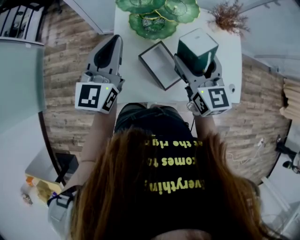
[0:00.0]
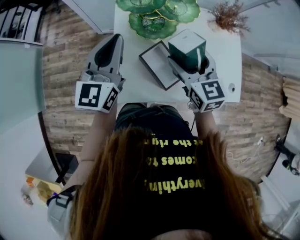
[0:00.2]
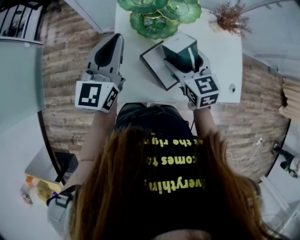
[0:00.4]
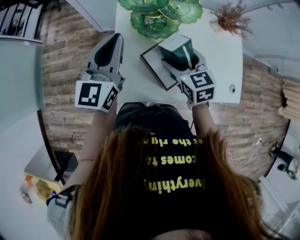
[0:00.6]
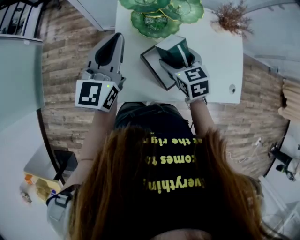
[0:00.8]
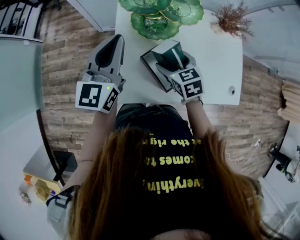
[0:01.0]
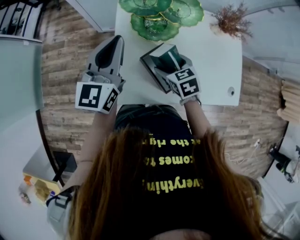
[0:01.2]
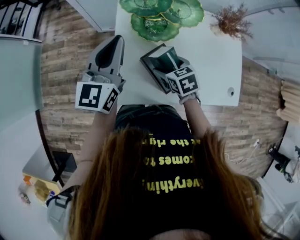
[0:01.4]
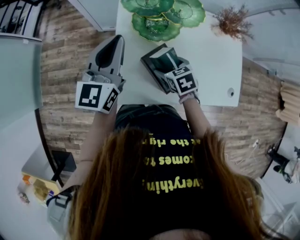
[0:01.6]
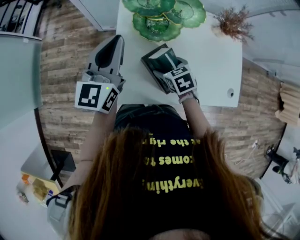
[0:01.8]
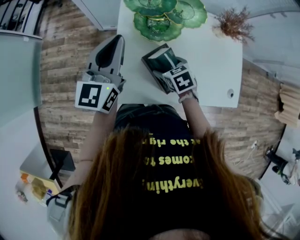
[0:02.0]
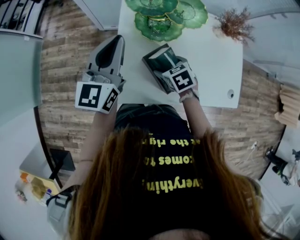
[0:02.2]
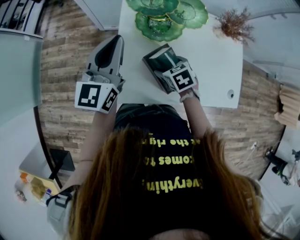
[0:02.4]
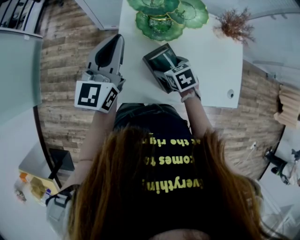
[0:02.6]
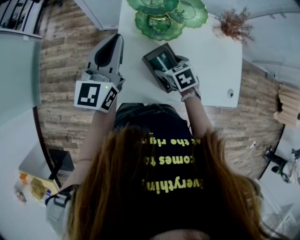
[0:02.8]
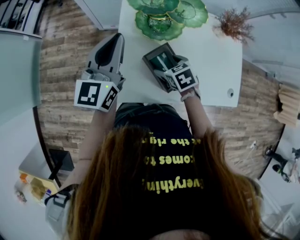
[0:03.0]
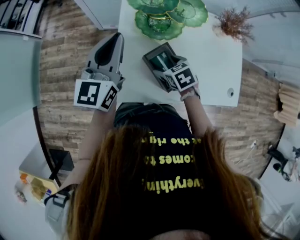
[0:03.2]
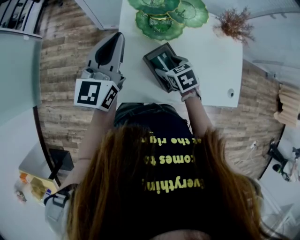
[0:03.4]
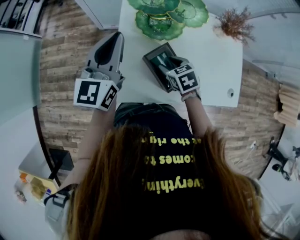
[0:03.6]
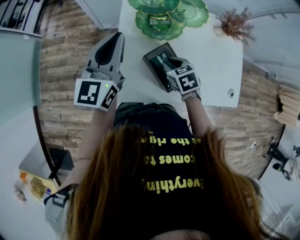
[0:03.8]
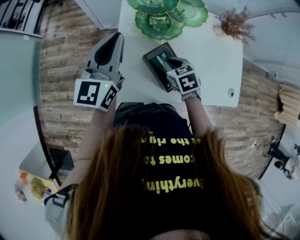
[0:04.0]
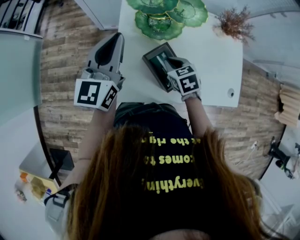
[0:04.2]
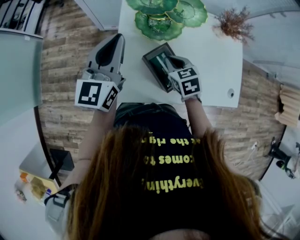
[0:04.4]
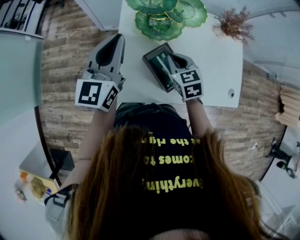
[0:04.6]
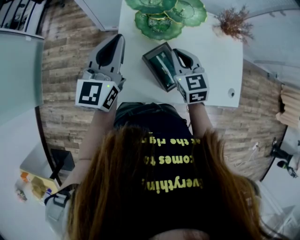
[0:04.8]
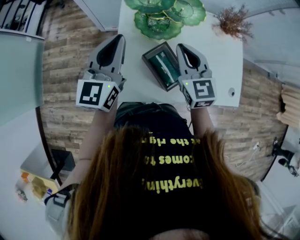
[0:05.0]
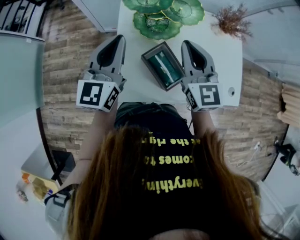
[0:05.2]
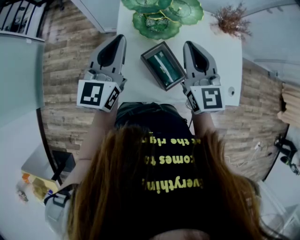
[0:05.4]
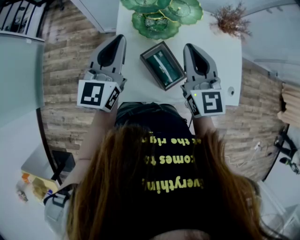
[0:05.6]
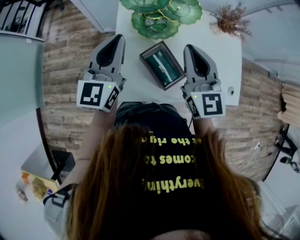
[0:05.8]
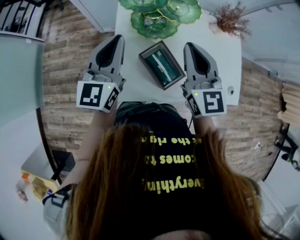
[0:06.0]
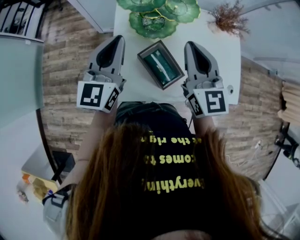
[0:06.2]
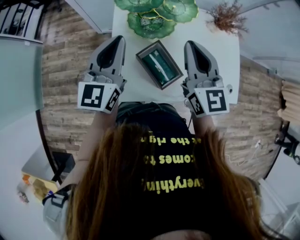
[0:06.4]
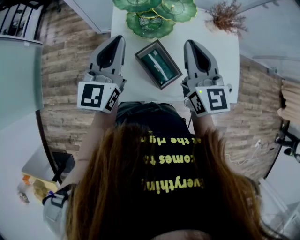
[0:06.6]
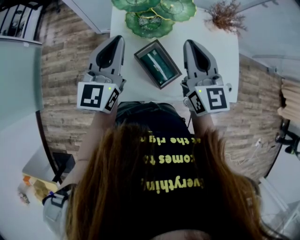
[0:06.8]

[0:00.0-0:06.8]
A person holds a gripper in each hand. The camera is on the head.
0:00.0 to 0:01.4: The right gripper shifts some 20 cm downward, and points its fingers approximately 40 degrees further downward.
0:01.4 to 0:02.8: The grippers move only a little.
0:02.8 to 0:04.0: The right gripper closes.
0:04.0 to 0:05.4: The right gripper heads upward, covering about 20 cm, and angles its fingers upward, by roughly 50 degrees.
0:05.4 to 0:06.8: The grippers move only a little.

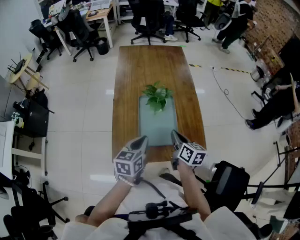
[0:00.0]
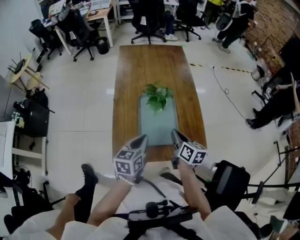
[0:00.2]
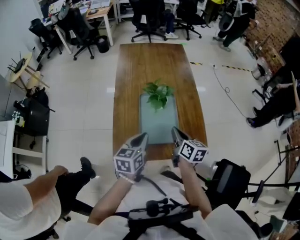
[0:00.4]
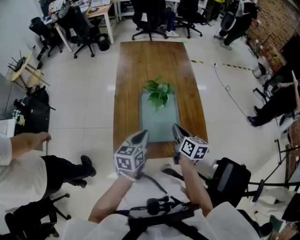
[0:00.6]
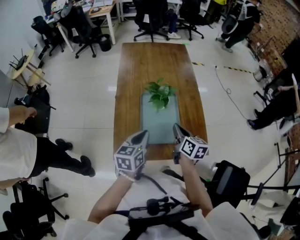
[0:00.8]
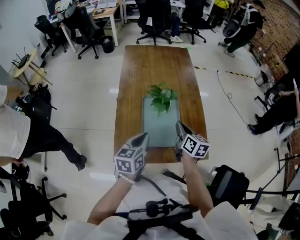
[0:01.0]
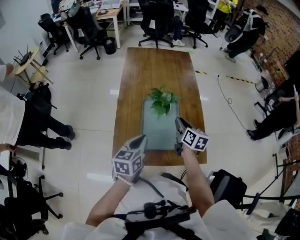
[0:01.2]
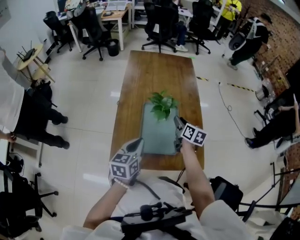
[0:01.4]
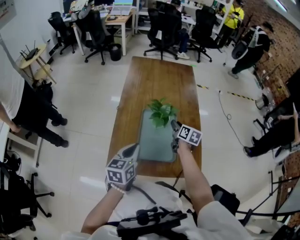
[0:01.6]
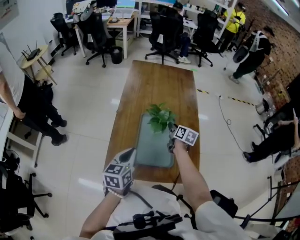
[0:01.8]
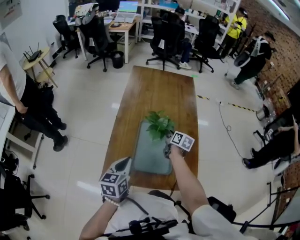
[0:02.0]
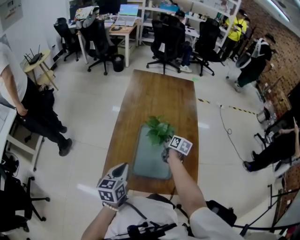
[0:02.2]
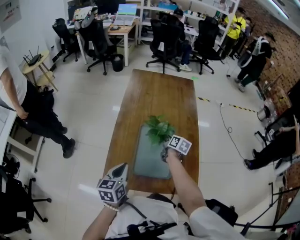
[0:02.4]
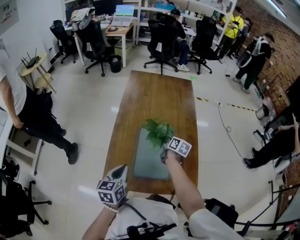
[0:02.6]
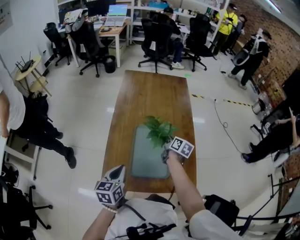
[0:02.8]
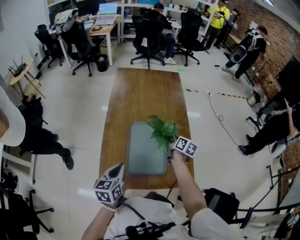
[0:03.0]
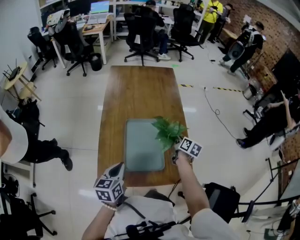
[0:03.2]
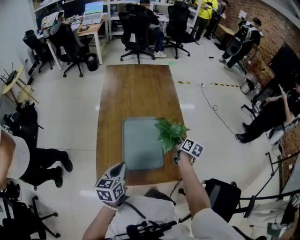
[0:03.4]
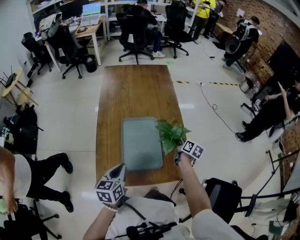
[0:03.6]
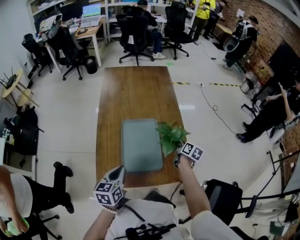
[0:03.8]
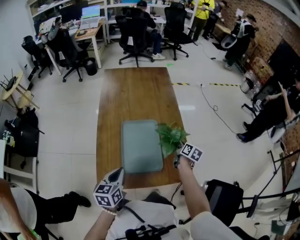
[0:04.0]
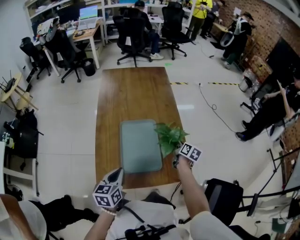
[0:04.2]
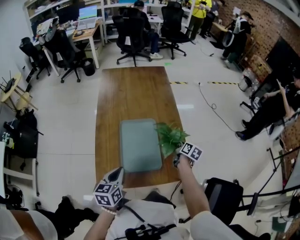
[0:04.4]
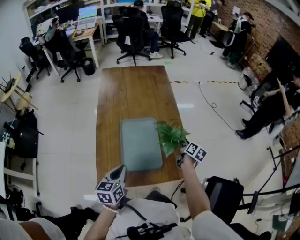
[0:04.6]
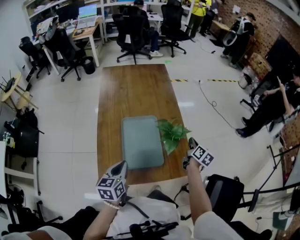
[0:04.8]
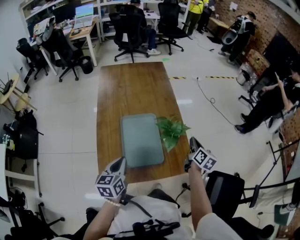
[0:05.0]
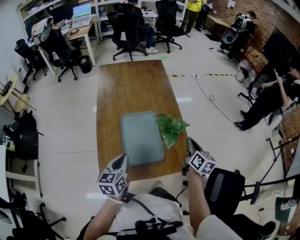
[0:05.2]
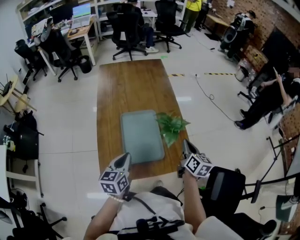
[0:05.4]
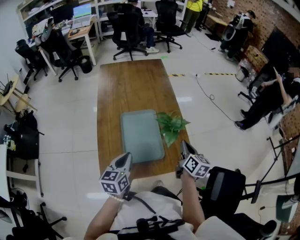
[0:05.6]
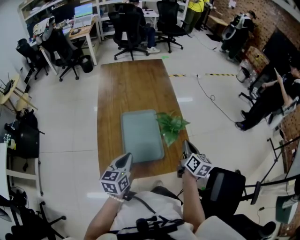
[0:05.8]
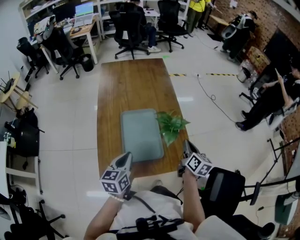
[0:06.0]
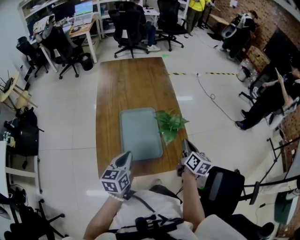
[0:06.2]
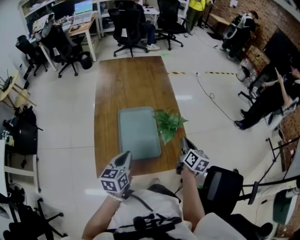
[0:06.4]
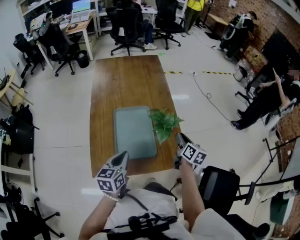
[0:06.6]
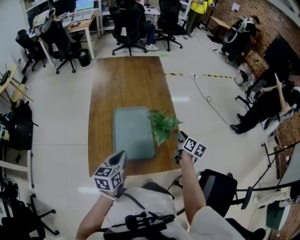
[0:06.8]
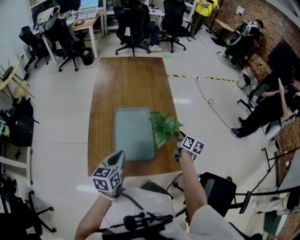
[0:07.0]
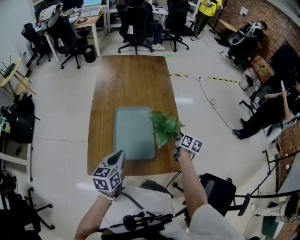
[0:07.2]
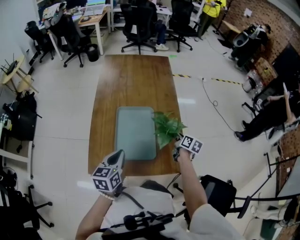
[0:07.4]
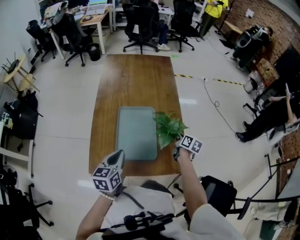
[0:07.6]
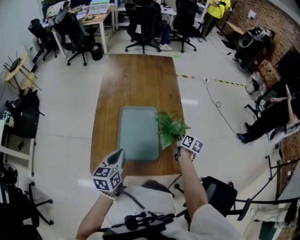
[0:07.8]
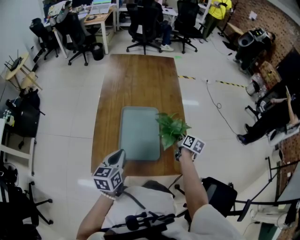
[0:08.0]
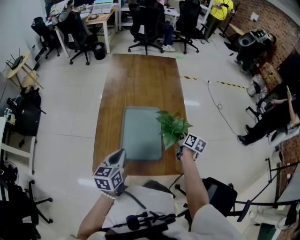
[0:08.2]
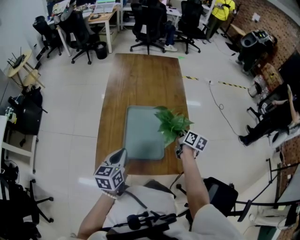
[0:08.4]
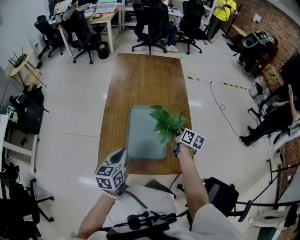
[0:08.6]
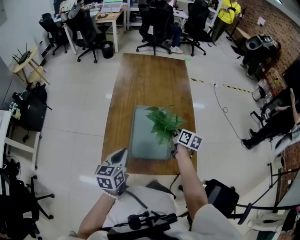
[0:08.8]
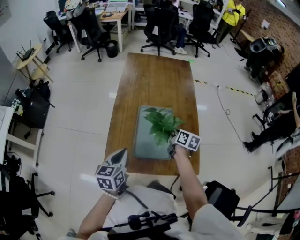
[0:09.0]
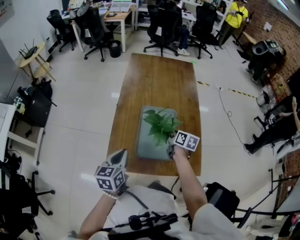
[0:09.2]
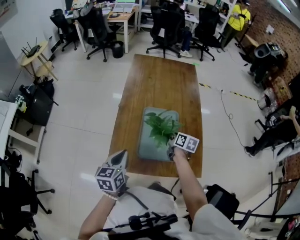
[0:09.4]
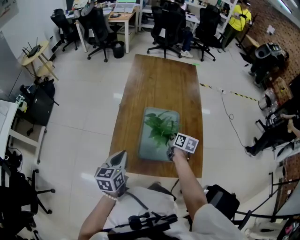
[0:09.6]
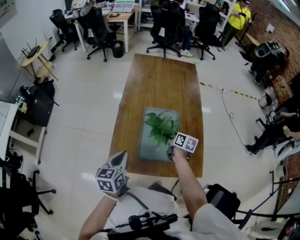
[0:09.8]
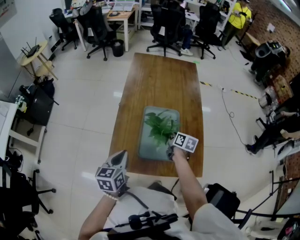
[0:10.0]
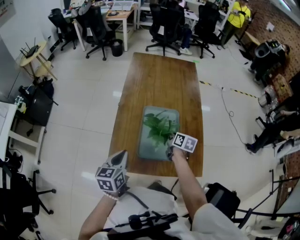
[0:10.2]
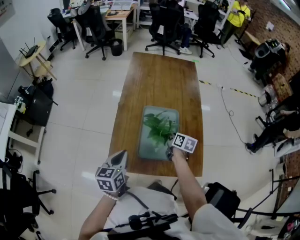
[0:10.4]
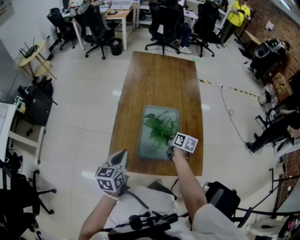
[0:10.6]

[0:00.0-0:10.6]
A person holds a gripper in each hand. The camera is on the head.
0:00.0 to 0:01.6: The right gripper moves forward, approximately 15 cm, and opens up.
0:01.6 to 0:03.0: The right gripper closes up.
0:03.0 to 0:04.6: The right gripper shifts some 15 cm to the right, and opens up.
0:04.6 to 0:06.0: The right gripper shifts about 15 cm upward and backward, and closes.
0:06.0 to 0:07.6: The right gripper is displaced downward and forward by roughly 15 cm, and opens its fingers.
0:07.6 to 0:09.0: The right gripper is displaced to the left by about 15 cm. The left gripper moves to the left, roughly 10 cm.
0:09.0 to 0:10.6: The right gripper heads downward, covering about 5 cm.

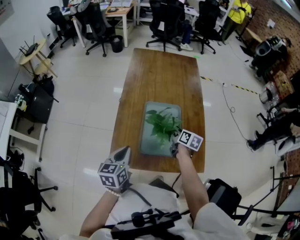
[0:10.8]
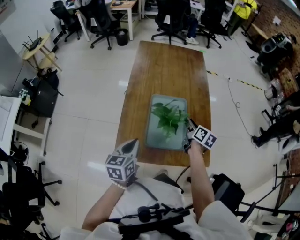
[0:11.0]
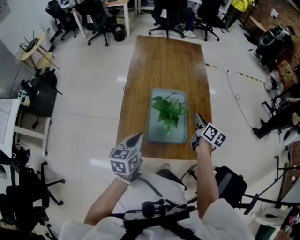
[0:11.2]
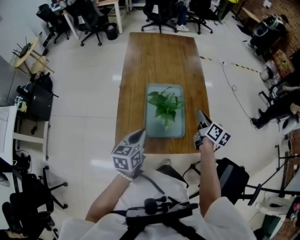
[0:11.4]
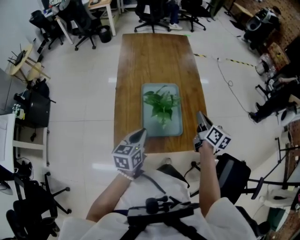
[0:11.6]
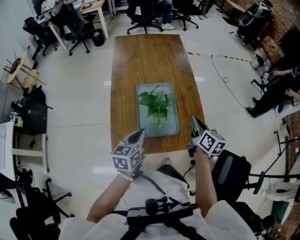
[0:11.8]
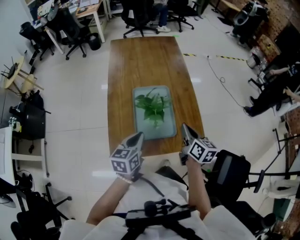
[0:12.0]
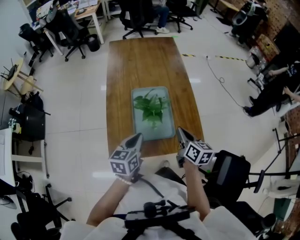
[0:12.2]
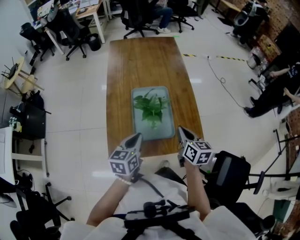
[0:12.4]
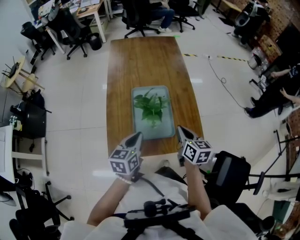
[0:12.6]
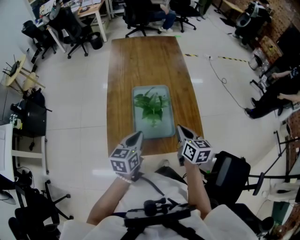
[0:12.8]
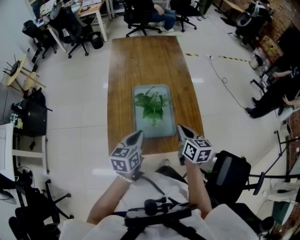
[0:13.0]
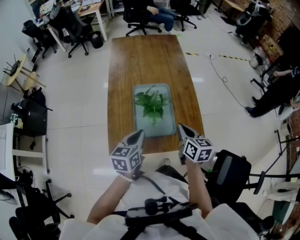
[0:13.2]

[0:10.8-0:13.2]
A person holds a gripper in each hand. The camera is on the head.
0:10.8 to 0:12.0: The right gripper goes approximately 20 cm backward and upward, and closes. The left gripper shifts about 5 cm to the right.
0:12.0 to 0:13.2: The grippers stay close to where they were, moving slightly.

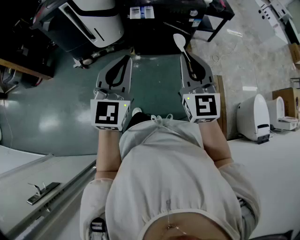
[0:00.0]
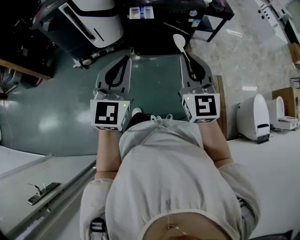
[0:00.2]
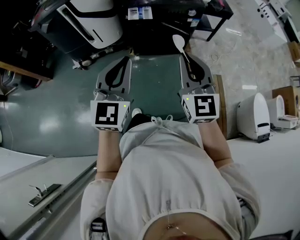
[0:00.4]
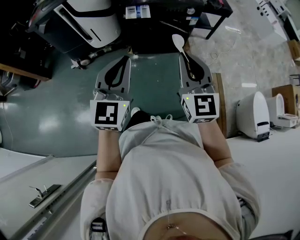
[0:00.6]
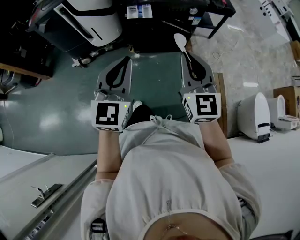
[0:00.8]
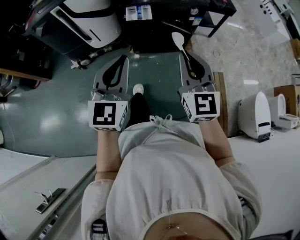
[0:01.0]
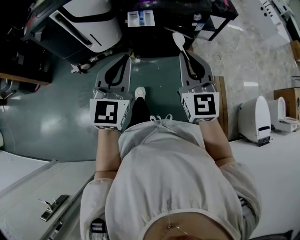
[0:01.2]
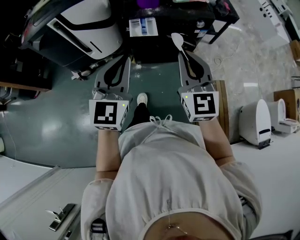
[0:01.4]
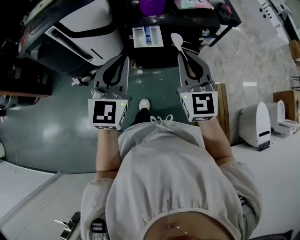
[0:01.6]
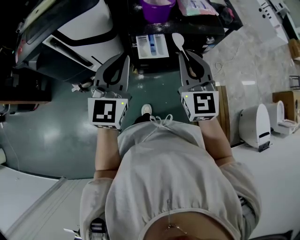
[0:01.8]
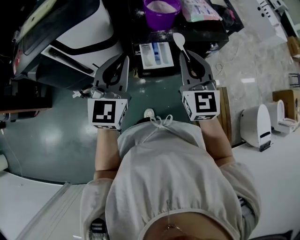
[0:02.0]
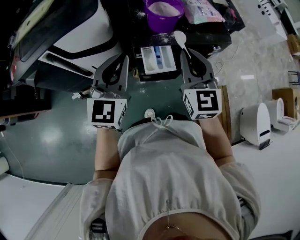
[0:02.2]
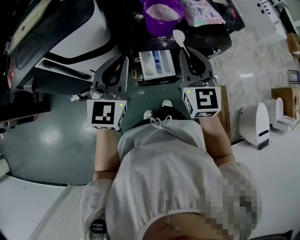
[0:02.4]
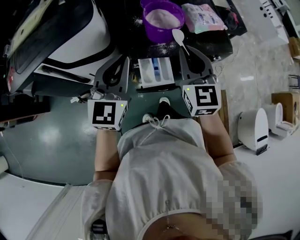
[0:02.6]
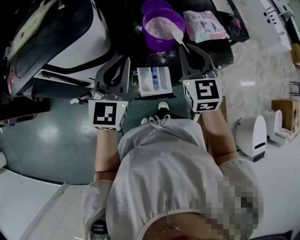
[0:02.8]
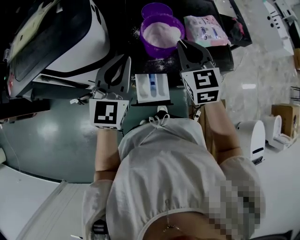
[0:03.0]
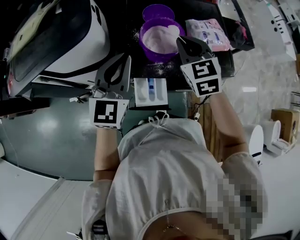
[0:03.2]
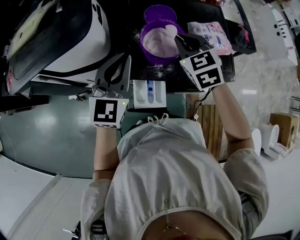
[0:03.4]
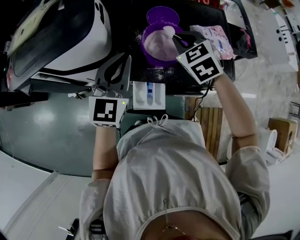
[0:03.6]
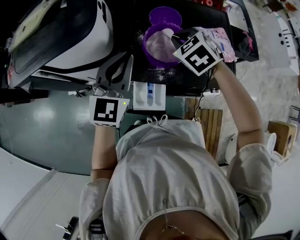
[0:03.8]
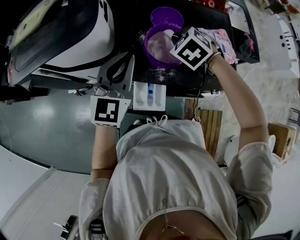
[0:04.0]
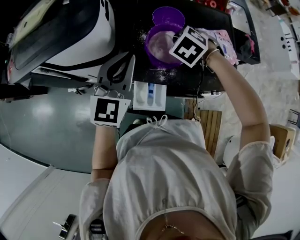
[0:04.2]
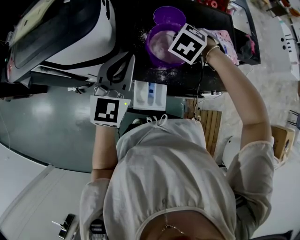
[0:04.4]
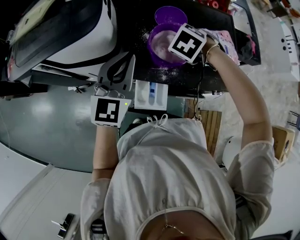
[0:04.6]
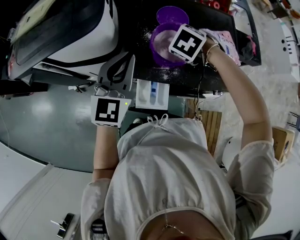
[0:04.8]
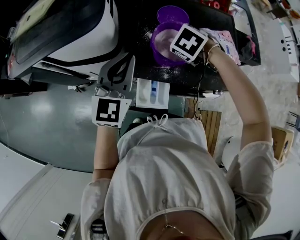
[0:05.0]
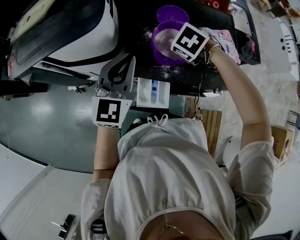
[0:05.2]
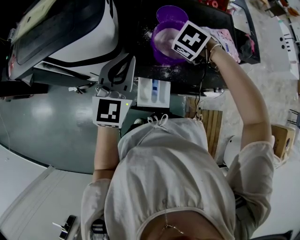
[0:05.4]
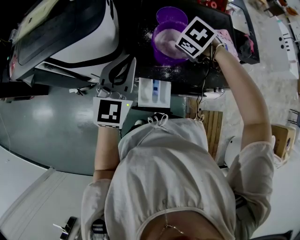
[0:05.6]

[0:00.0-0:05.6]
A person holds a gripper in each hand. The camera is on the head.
0:00.0 to 0:01.4: Both grippers travel together forward, approximately 20 cm.
0:01.4 to 0:02.8: Both grippers travel together forward, some 35 cm.
0:02.8 to 0:04.2: The left gripper travels forward by roughly 10 cm, while the right gripper travels forward and downward by approximately 20 cm, and points its fingers some 50 degrees further downward.
0:04.2 to 0:05.6: The right gripper changes place by approximately 5 cm, and turns by about 30 degrees.
